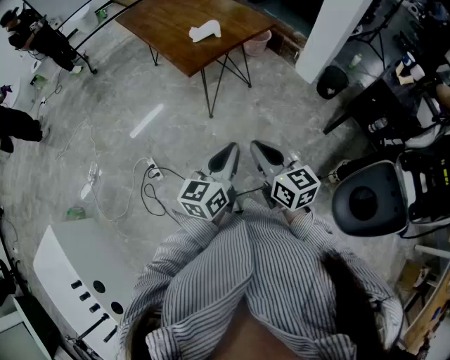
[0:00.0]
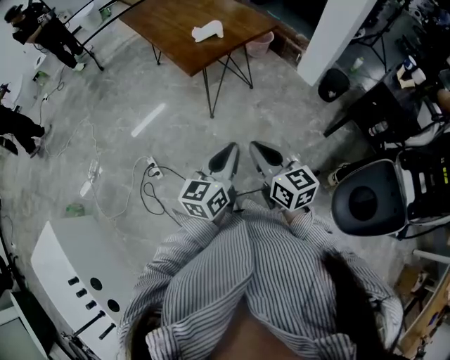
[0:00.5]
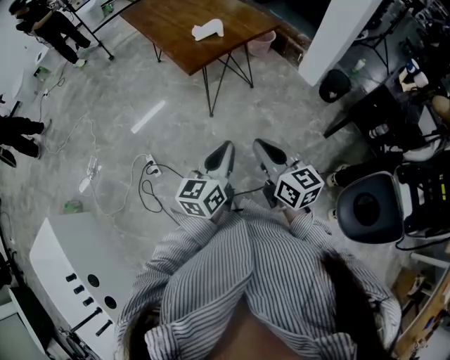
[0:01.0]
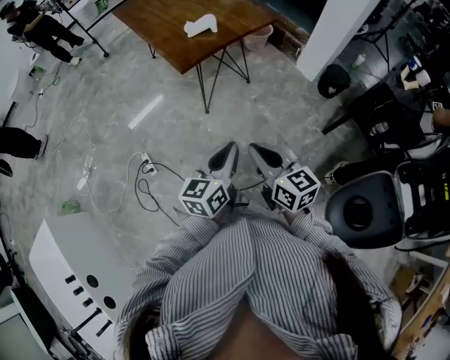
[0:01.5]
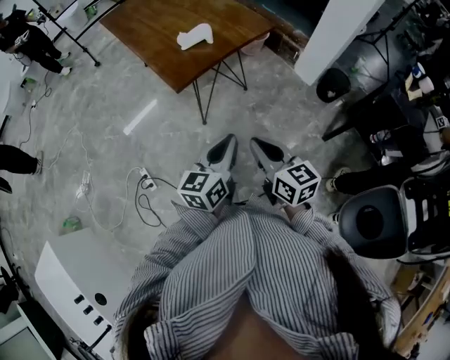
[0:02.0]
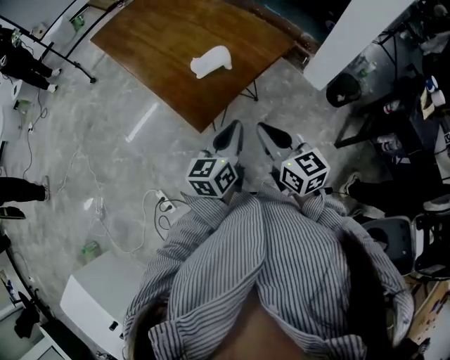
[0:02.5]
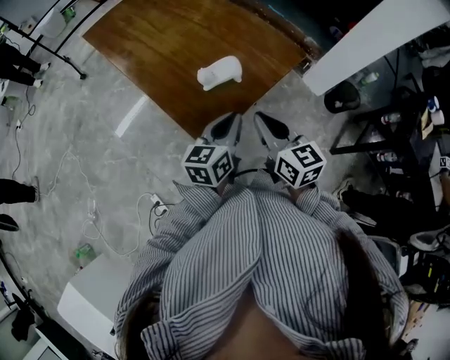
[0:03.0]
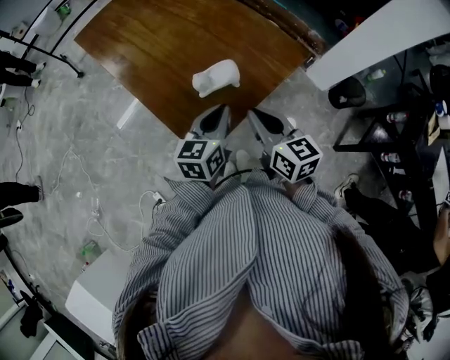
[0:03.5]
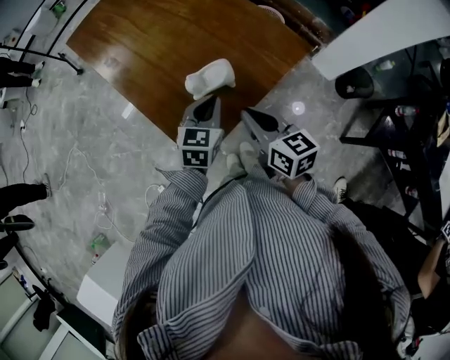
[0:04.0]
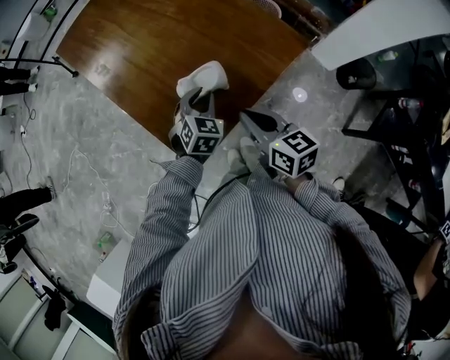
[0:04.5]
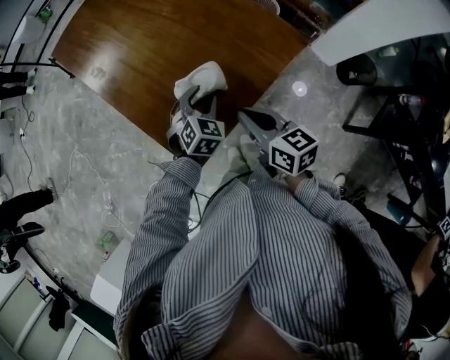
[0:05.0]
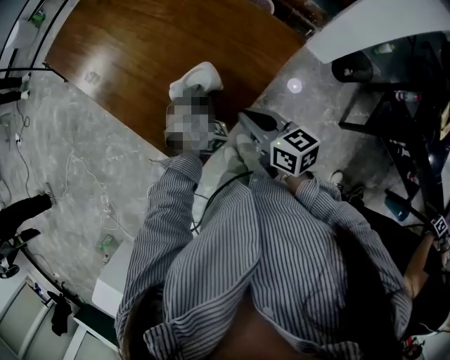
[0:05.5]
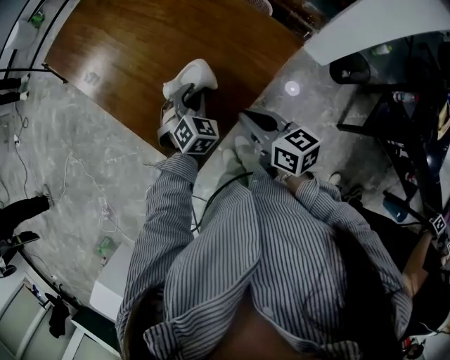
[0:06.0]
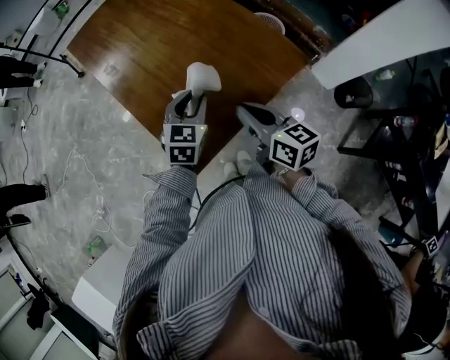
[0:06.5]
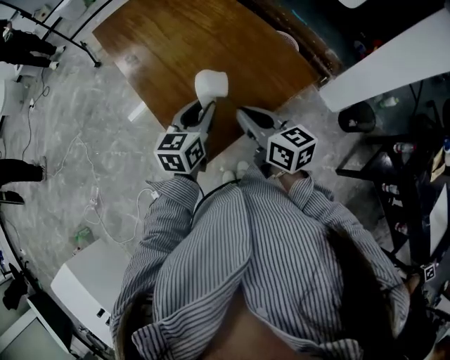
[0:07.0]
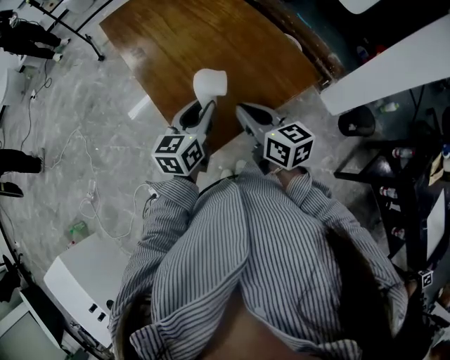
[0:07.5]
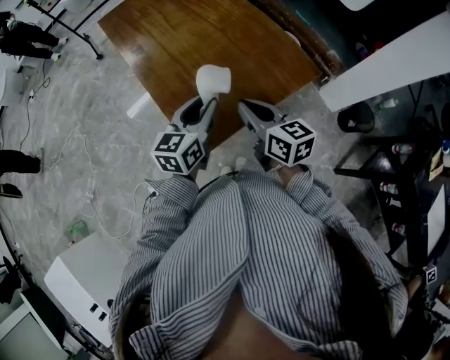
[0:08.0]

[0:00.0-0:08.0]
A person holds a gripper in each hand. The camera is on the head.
0:00.0 to 0:02.0: The two grippers go roughly 15 cm forward.
0:02.0 to 0:04.0: The two grippers travel together, forward, some 40 cm. The left gripper swivels about 30 degrees.
0:04.0 to 0:06.0: The left gripper travels downward and forward by approximately 10 cm, turns by approximately 40 degrees, and opens its fingers, while the right gripper changes place by about 5 cm.
0:06.0 to 0:08.0: The right gripper goes roughly 10 cm to the left and upward. Meanwhile the left gripper is displaced upward, backward and to the left by some 20 cm, and rolls counterclockwise, seen from behind, by roughly 50 degrees.

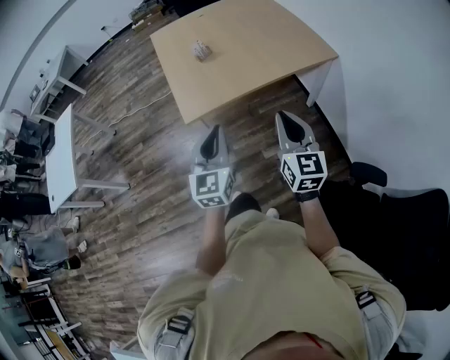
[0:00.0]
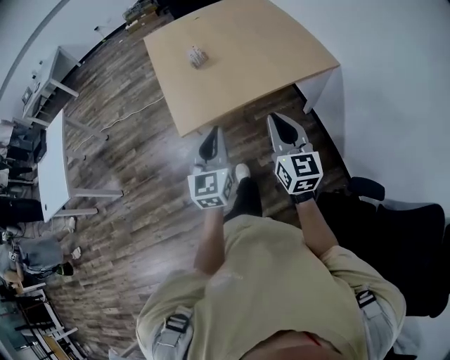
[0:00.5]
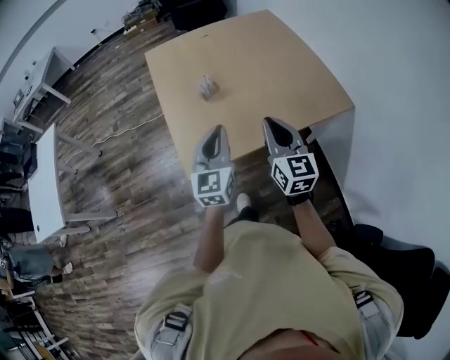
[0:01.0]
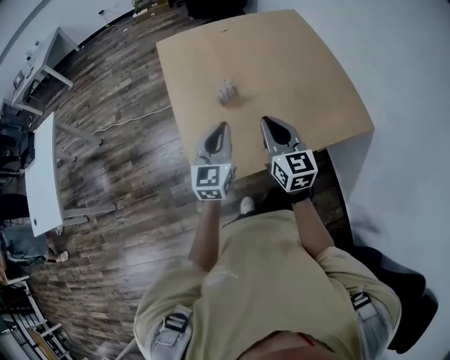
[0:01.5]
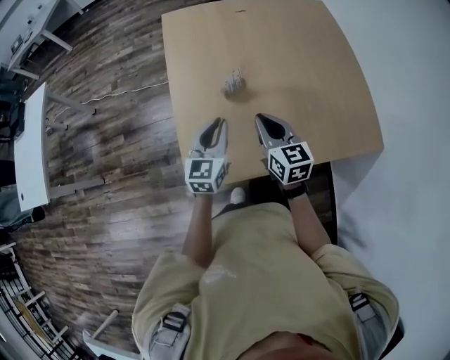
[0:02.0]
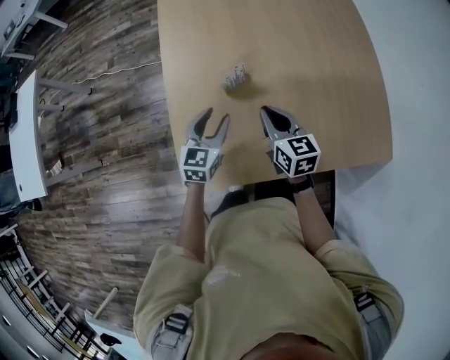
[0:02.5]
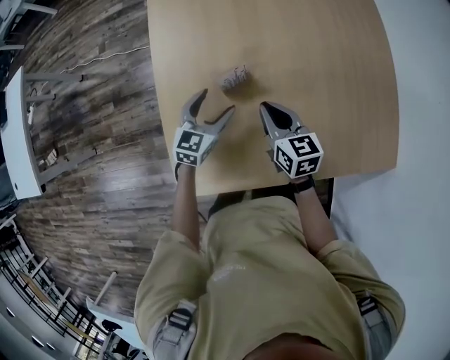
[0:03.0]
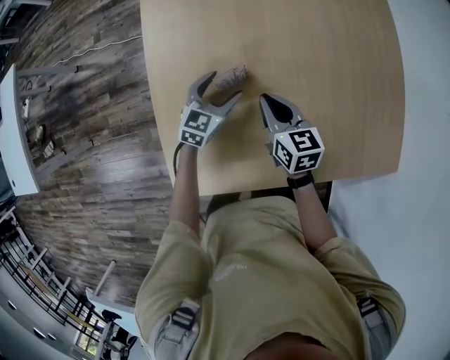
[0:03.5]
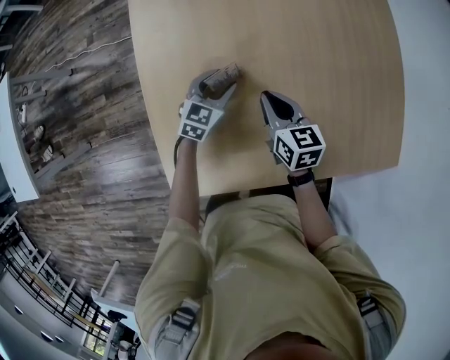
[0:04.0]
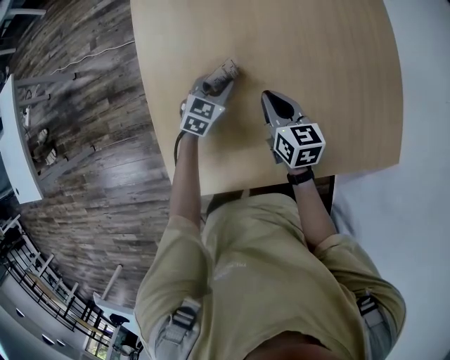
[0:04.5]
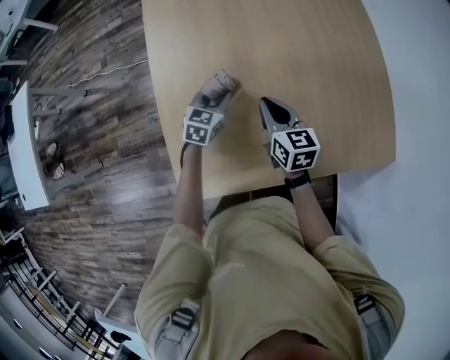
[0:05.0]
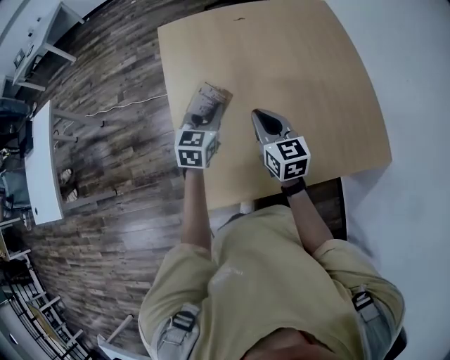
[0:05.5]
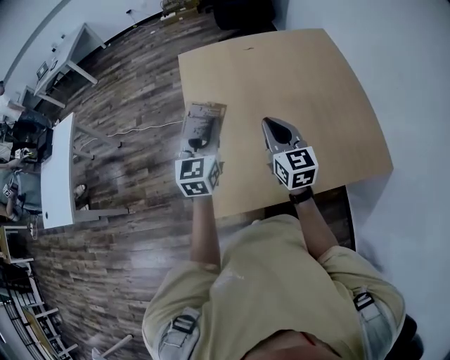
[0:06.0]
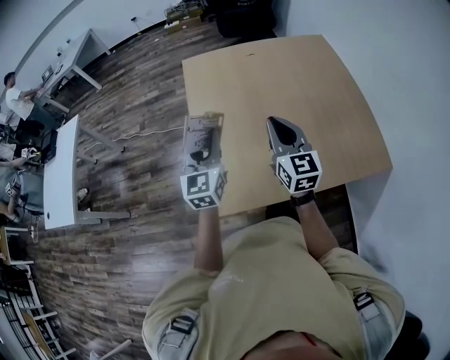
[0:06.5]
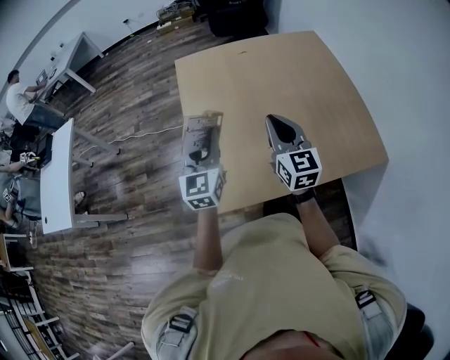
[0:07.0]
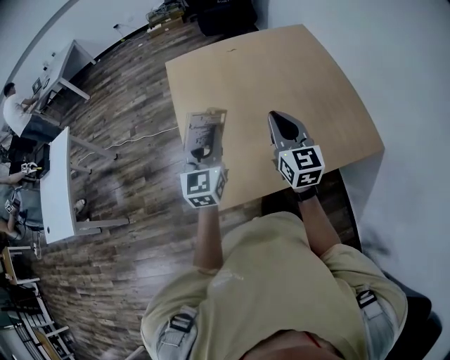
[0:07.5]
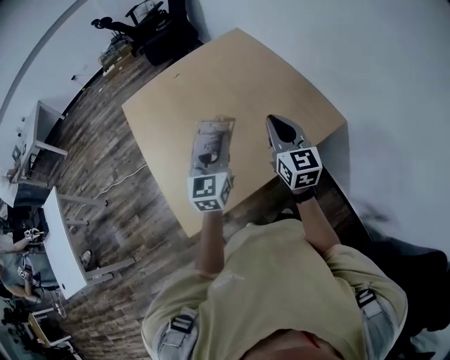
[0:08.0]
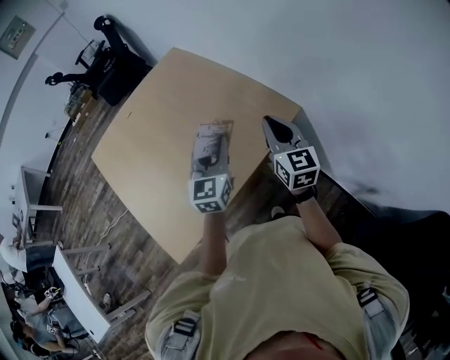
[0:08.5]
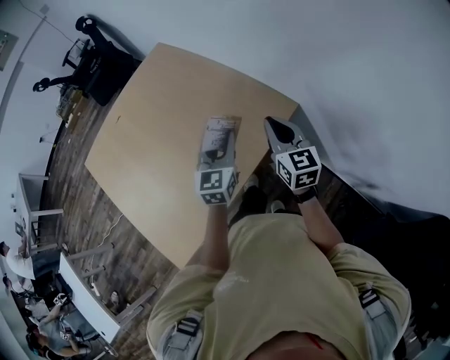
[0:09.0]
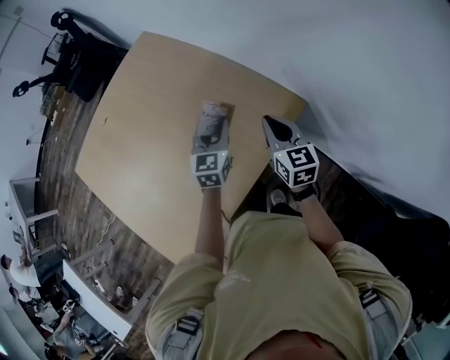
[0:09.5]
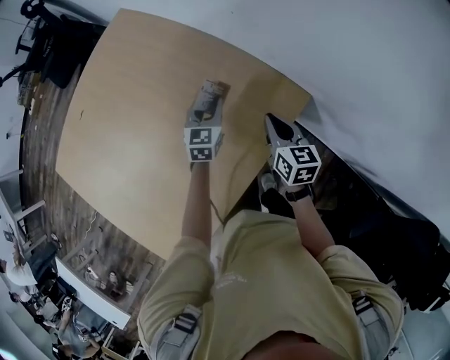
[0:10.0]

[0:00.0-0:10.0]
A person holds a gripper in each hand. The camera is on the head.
0:00.0 to 0:02.0: The two grippers travel together, forward, about 50 cm. The right gripper rotates roughly 30 degrees.
0:02.0 to 0:04.0: The two grippers go some 25 cm downward and forward. The left gripper changes its angle by approximately 30 degrees, and opens its fingers.
0:04.0 to 0:06.0: Both grippers travel together upward and backward, approximately 35 cm. The left gripper rotates some 30 degrees. Meanwhile the right gripper turns by roughly 30 degrees.
0:06.0 to 0:08.0: The right gripper goes roughly 25 cm to the right and backward, and rotates some 20 degrees, while the left gripper is displaced to the right by roughly 25 cm, and rotates about 20 degrees.
0:08.0 to 0:10.0: The right gripper is displaced downward, forward and to the right by roughly 40 cm, and swivels approximately 40 degrees. The left gripper travels forward, downward and to the right by roughly 50 cm, and rotates approximately 40 degrees.

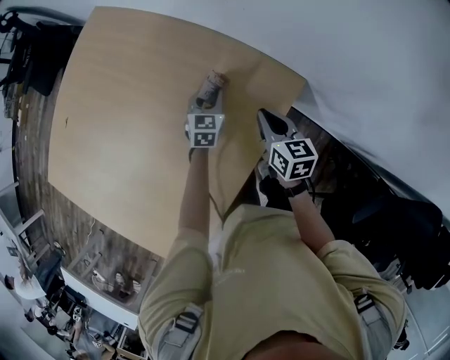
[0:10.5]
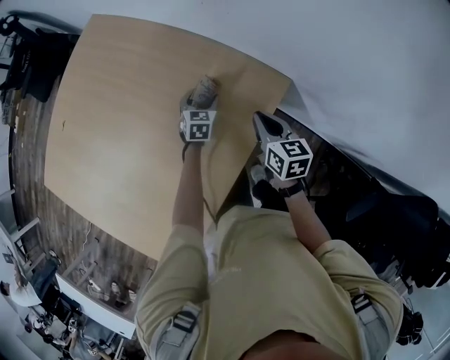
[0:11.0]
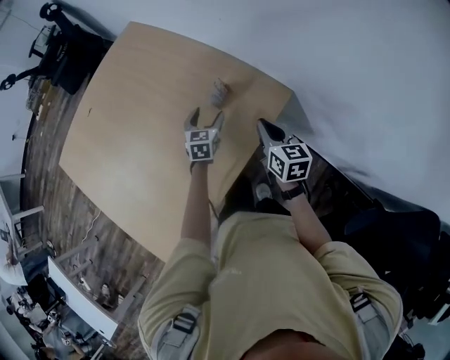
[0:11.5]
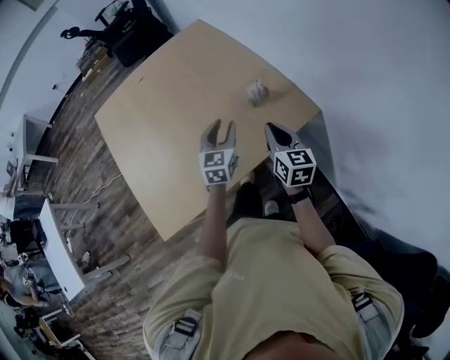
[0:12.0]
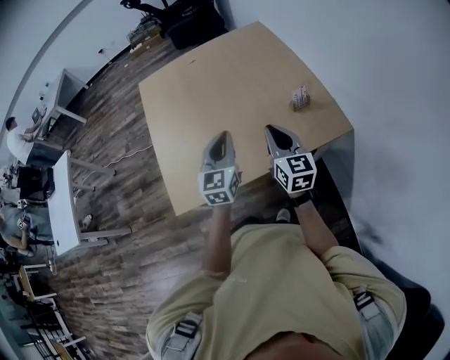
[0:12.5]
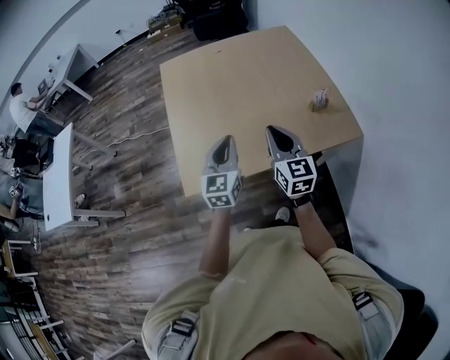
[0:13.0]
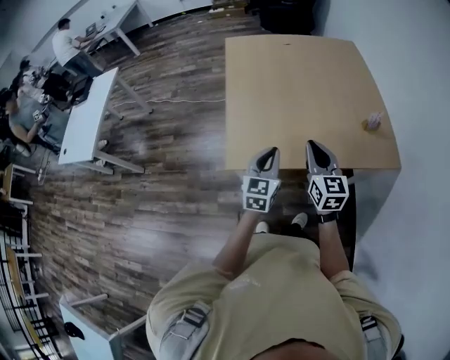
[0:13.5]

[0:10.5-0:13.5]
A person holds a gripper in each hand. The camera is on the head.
0:10.5 to 0:12.0: Both grippers move backward and upward, some 30 cm. The left gripper turns by some 30 degrees, and opens and closes again. Meanwhile the right gripper rotates about 30 degrees.
0:12.0 to 0:13.5: The grippers both shift to the left and backward by about 35 cm. The left gripper closes its fingers; the right gripper turns by roughly 30 degrees.

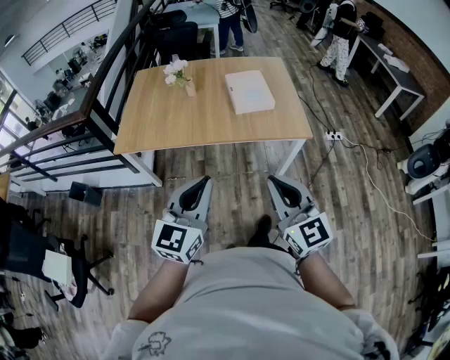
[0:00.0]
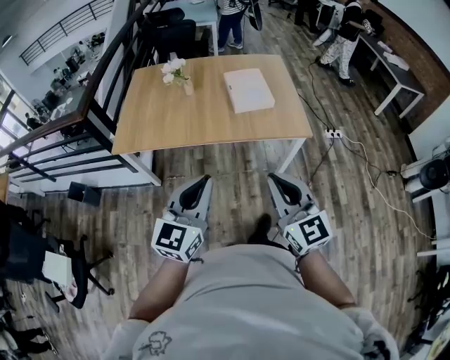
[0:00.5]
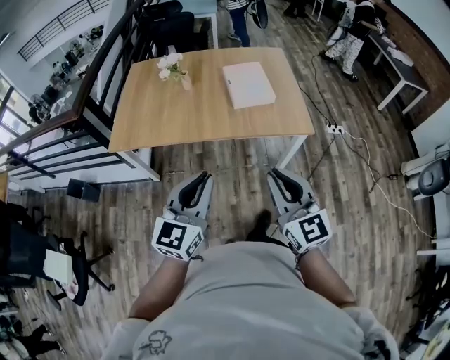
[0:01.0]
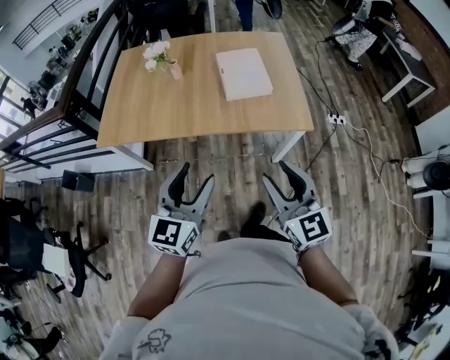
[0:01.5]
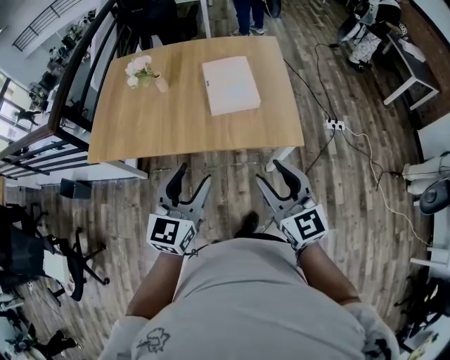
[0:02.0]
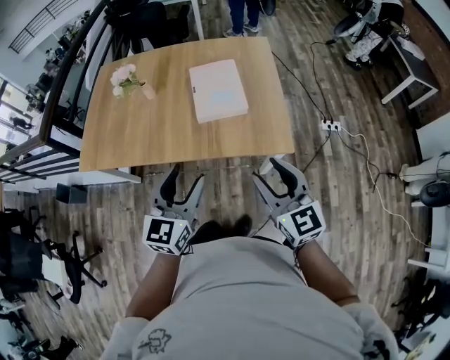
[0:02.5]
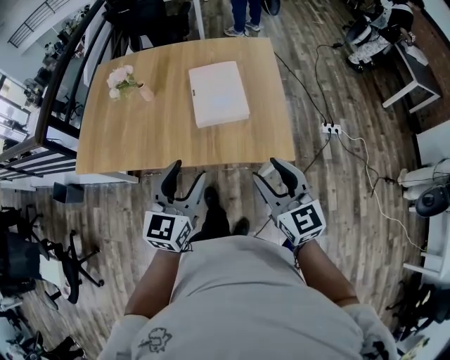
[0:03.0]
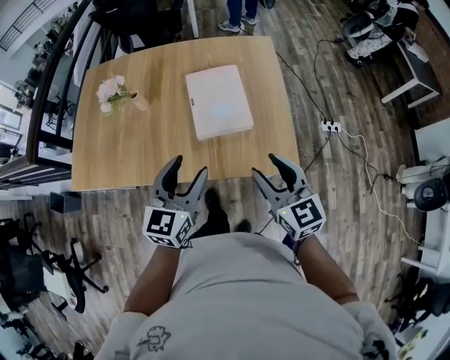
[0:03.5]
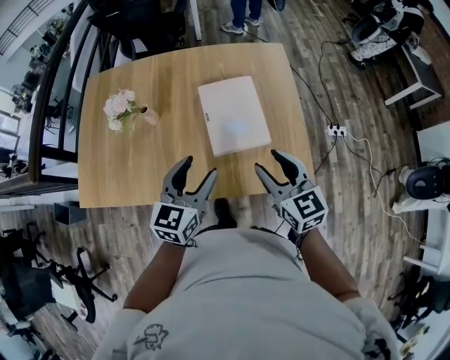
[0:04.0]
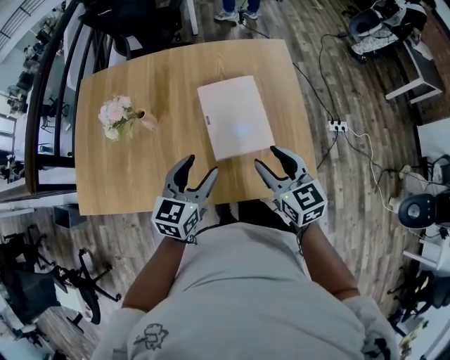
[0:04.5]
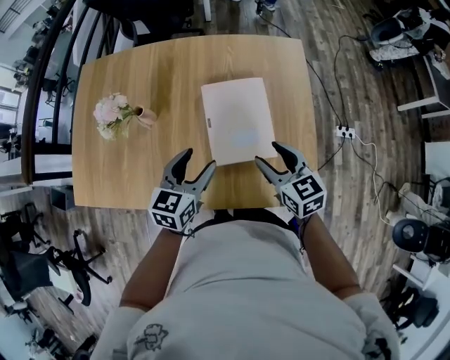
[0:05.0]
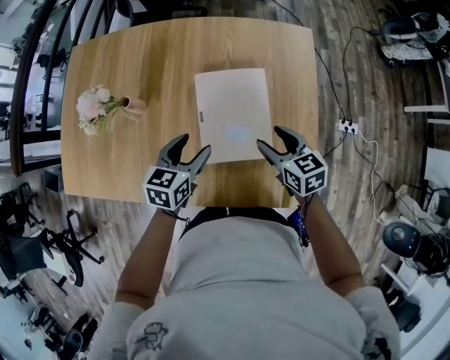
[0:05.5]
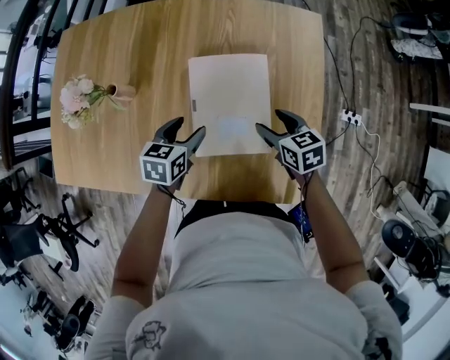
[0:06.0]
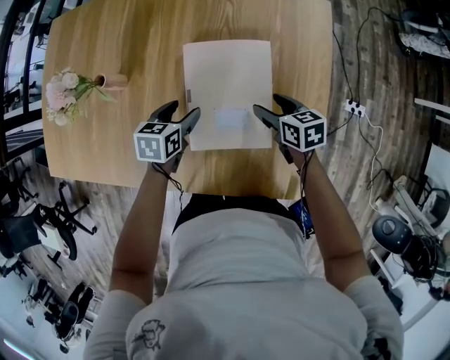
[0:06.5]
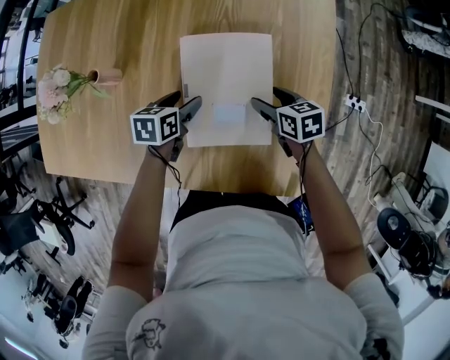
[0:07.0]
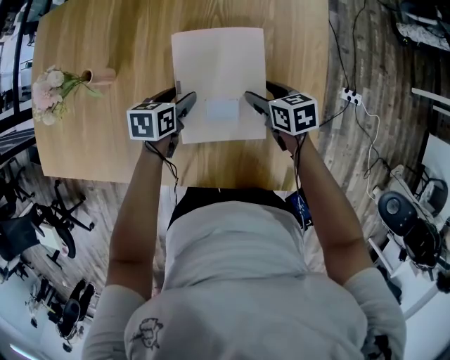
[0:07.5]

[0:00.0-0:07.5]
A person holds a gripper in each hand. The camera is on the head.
0:00.0 to 0:02.0: The grippers both shift forward and to the right by about 25 cm. The left gripper opens its fingers; the right gripper opens up.
0:02.0 to 0:04.0: The two grippers go about 30 cm forward.
0:04.0 to 0:05.5: Both grippers move forward and downward, some 20 cm. The right gripper changes its angle by some 20 degrees. Meanwhile the left gripper turns by roughly 20 degrees.
0:05.5 to 0:07.5: The two grippers go roughly 15 cm downward and forward. The left gripper rotates approximately 20 degrees.
